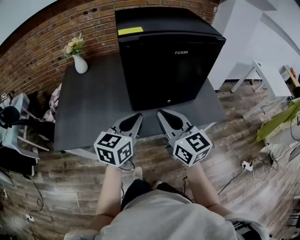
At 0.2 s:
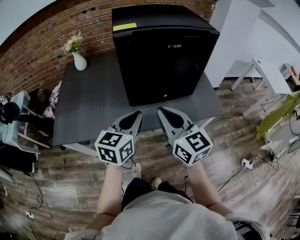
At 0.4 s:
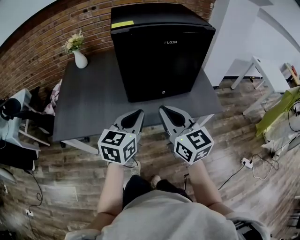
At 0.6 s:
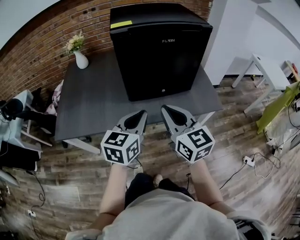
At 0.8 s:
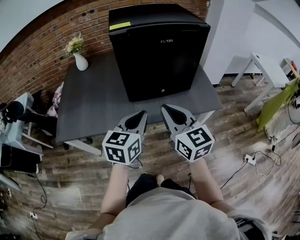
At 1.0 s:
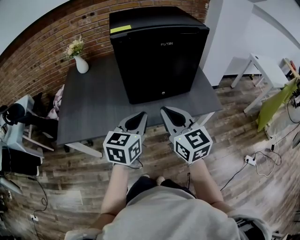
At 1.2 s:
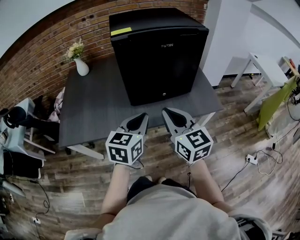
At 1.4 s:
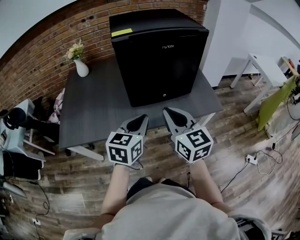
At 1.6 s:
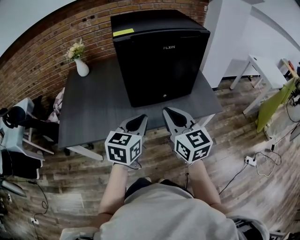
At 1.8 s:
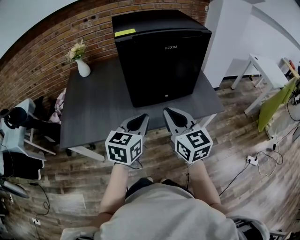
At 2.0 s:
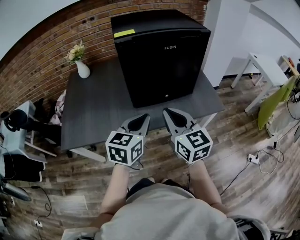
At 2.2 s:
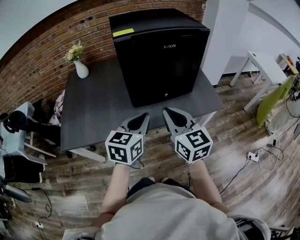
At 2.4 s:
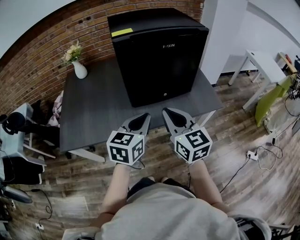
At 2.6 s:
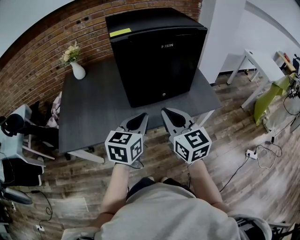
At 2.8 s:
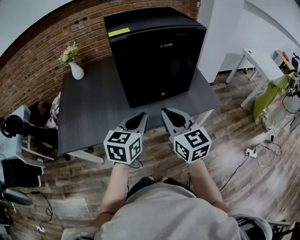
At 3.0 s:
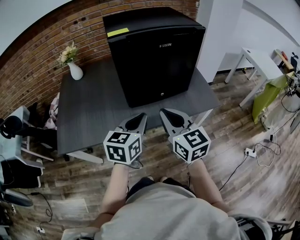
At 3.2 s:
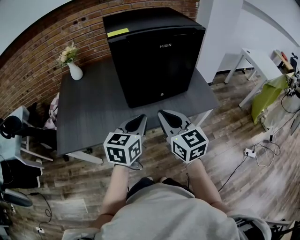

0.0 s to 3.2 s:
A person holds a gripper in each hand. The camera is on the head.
0.0 to 1.6 s: The two grippers go roughly 5 cm backward.
1.6 to 3.2 s: The grippers make only small movements.

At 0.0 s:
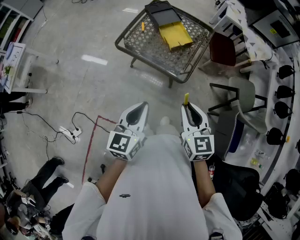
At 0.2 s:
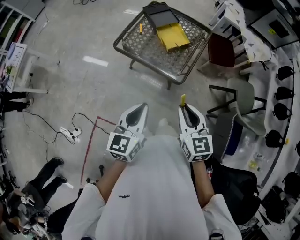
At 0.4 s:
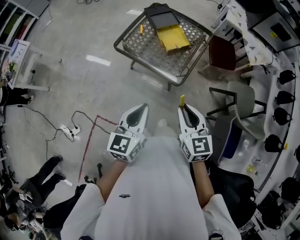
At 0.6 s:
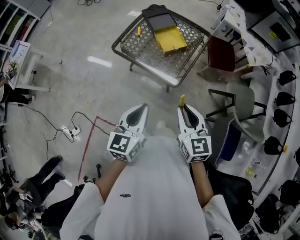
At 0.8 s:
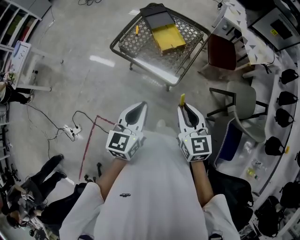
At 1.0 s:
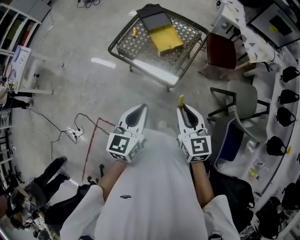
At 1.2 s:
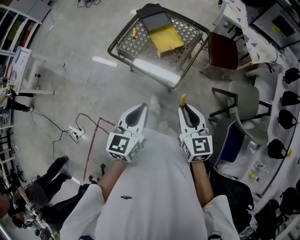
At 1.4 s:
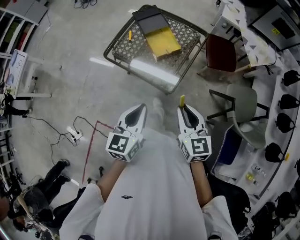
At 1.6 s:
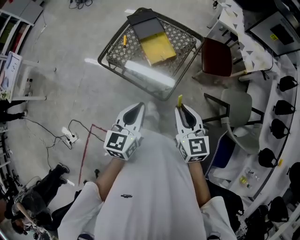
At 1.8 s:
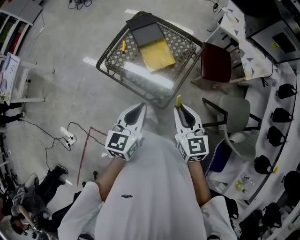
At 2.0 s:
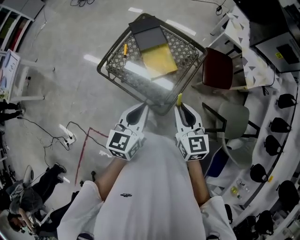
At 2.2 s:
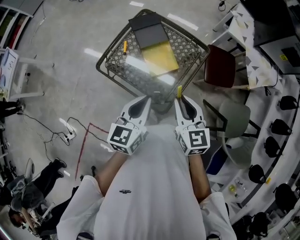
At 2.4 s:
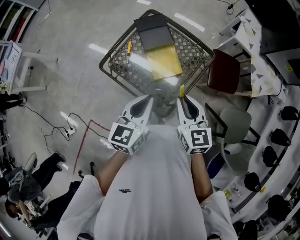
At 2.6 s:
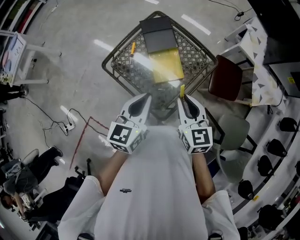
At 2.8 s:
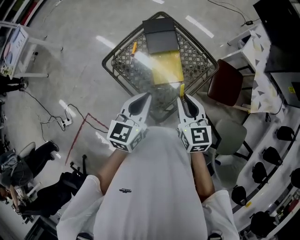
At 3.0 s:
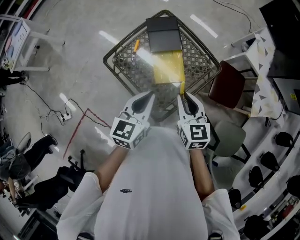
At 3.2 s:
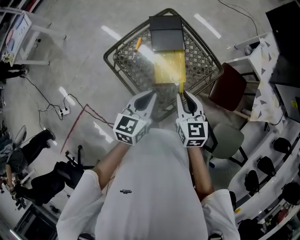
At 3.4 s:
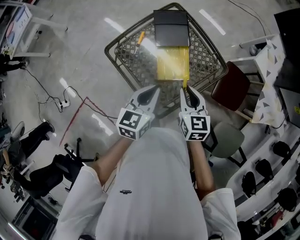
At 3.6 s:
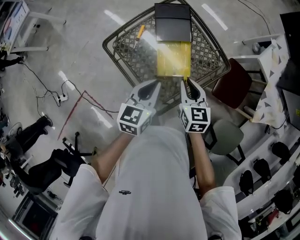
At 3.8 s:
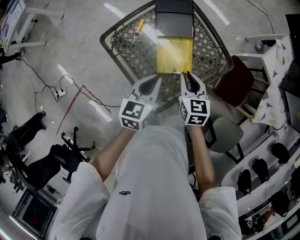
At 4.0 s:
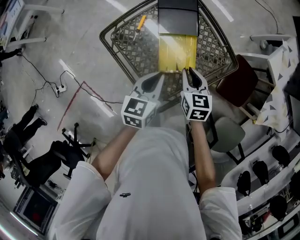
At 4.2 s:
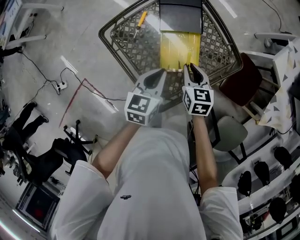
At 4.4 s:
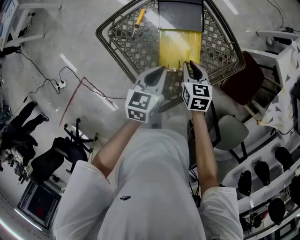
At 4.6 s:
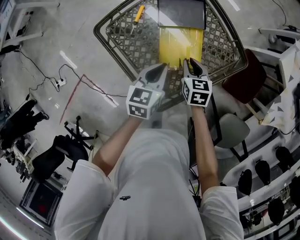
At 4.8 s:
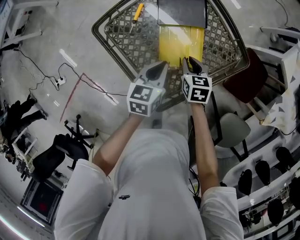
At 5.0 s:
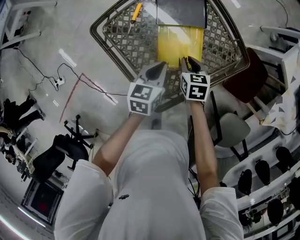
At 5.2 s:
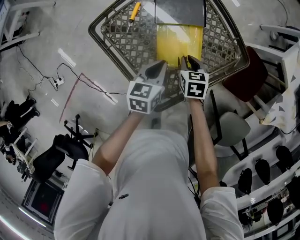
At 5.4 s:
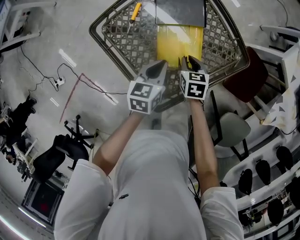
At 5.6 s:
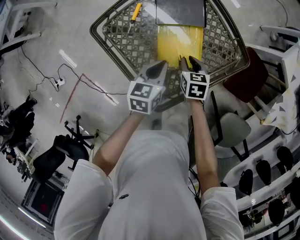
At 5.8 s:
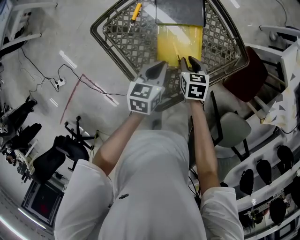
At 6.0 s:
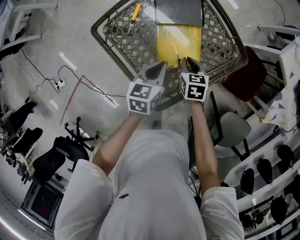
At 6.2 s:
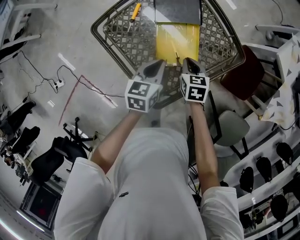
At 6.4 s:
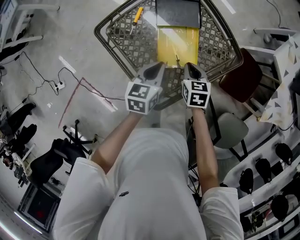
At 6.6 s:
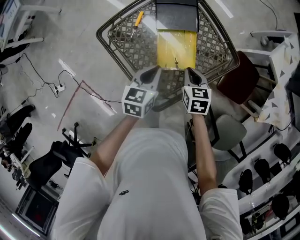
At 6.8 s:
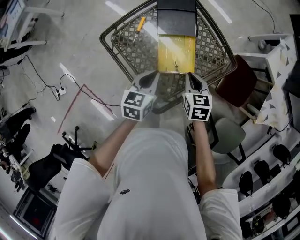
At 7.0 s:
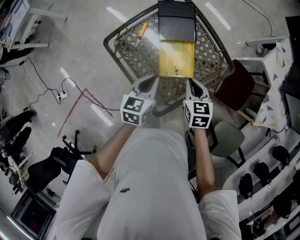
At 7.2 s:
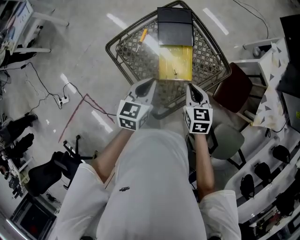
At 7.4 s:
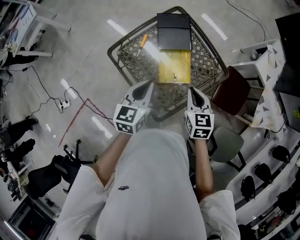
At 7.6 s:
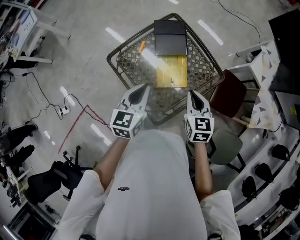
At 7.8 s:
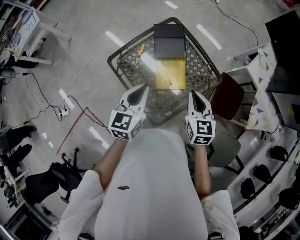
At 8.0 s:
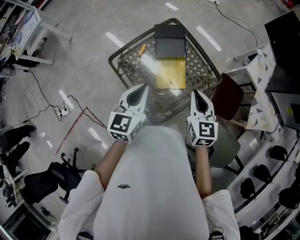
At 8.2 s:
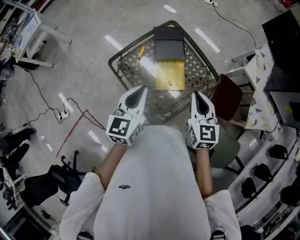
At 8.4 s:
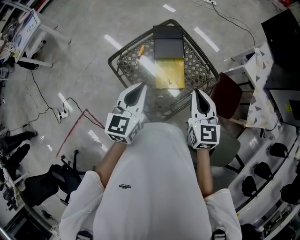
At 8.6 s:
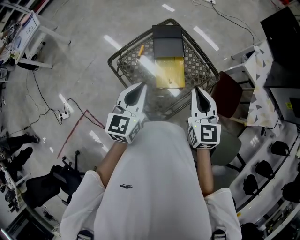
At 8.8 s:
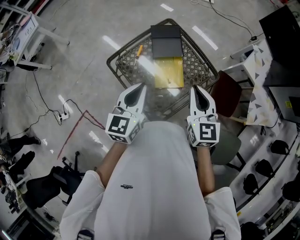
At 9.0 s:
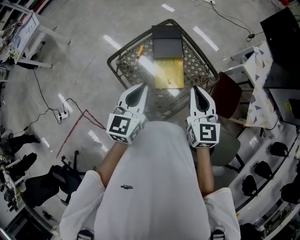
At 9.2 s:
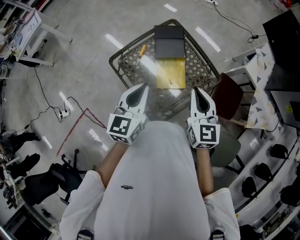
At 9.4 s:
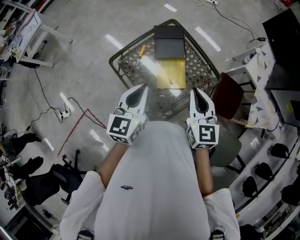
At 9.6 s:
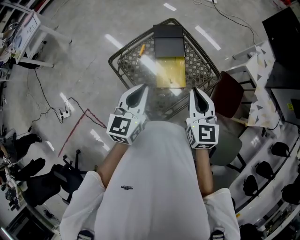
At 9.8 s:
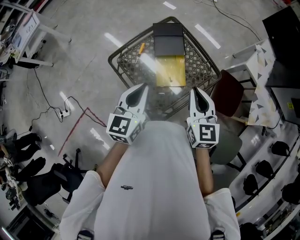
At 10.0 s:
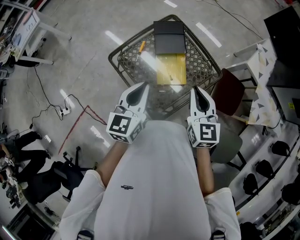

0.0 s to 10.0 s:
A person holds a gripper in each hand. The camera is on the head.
0.0 to 1.4 s: Both grippers move to the right and forward, approximately 15 cm.
1.4 to 2.8 s: The grippers both shift forward by some 30 cm.
2.8 to 4.2 s: The two grippers go about 25 cm downward and forward.
4.2 to 5.8 s: Both grippers move downward, about 10 cm.
5.8 to 7.2 s: Both grippers move upward, about 20 cm.
7.2 to 8.6 s: The grippers both shift upward by some 15 cm. The right gripper turns by about 30 degrees.
8.6 to 10.0 s: The grippers move only a little.

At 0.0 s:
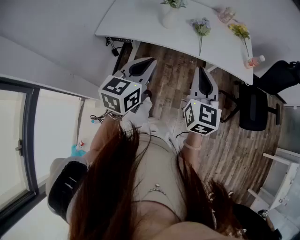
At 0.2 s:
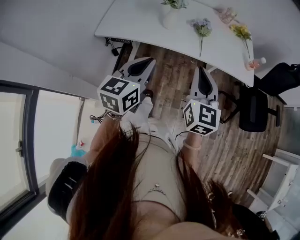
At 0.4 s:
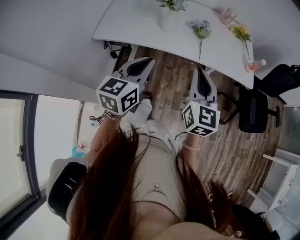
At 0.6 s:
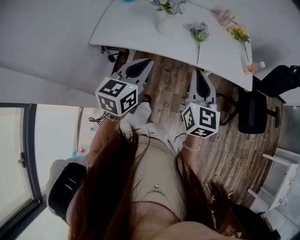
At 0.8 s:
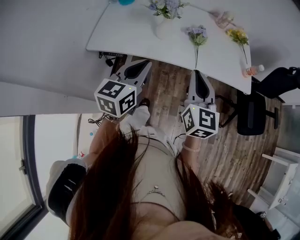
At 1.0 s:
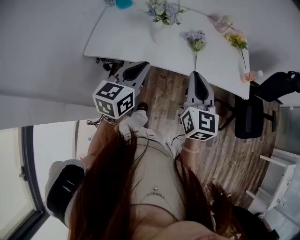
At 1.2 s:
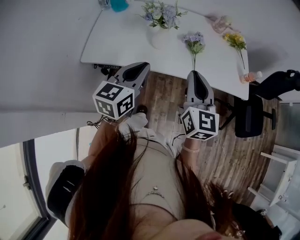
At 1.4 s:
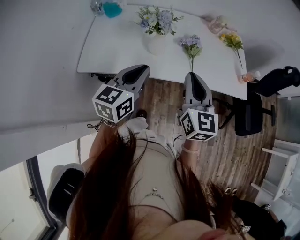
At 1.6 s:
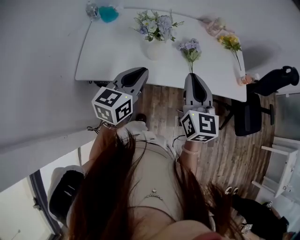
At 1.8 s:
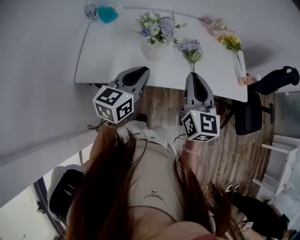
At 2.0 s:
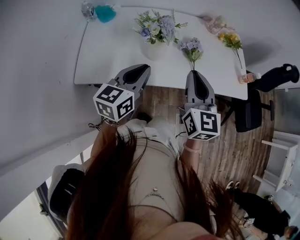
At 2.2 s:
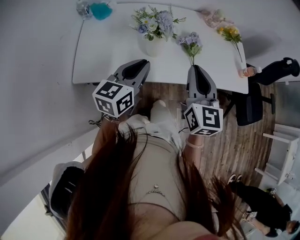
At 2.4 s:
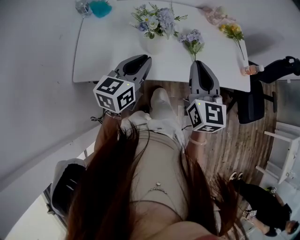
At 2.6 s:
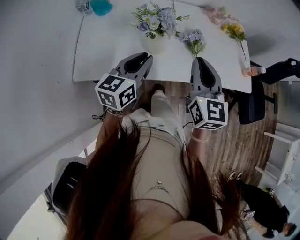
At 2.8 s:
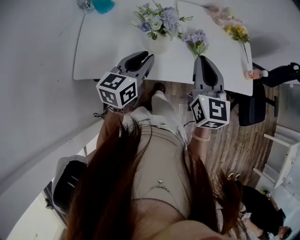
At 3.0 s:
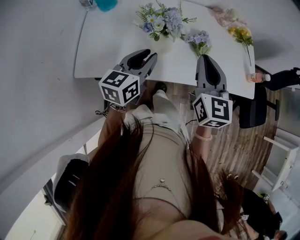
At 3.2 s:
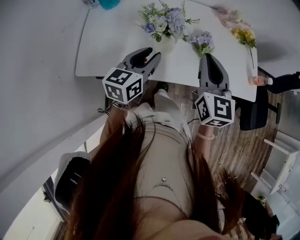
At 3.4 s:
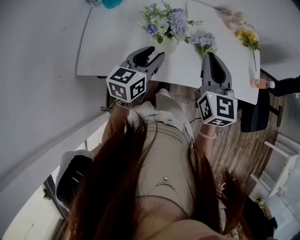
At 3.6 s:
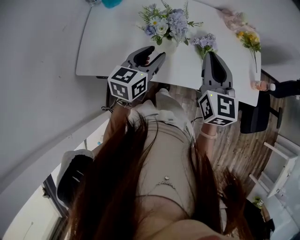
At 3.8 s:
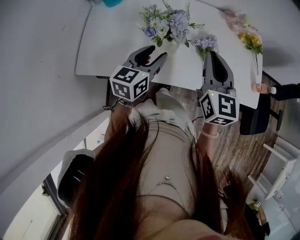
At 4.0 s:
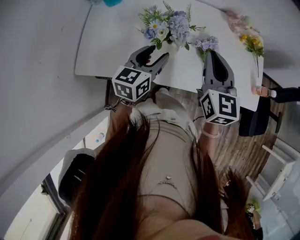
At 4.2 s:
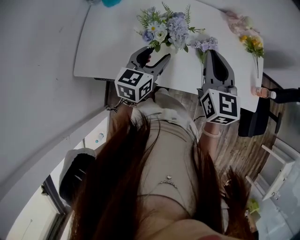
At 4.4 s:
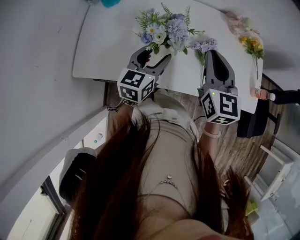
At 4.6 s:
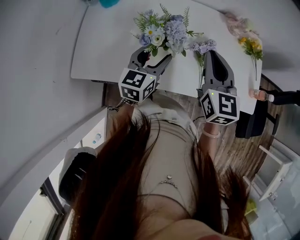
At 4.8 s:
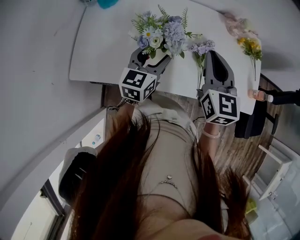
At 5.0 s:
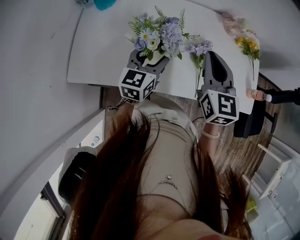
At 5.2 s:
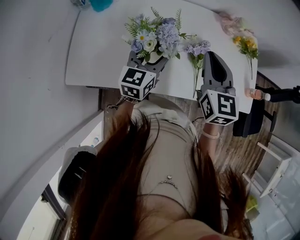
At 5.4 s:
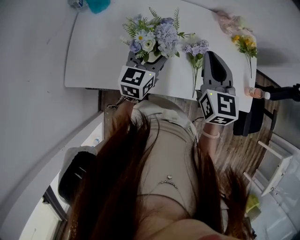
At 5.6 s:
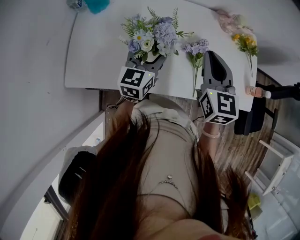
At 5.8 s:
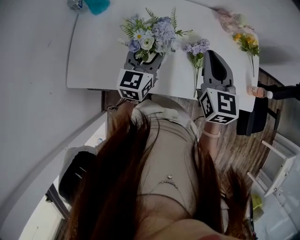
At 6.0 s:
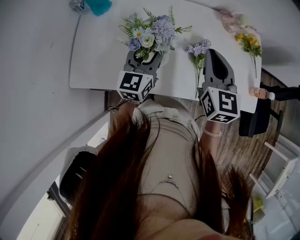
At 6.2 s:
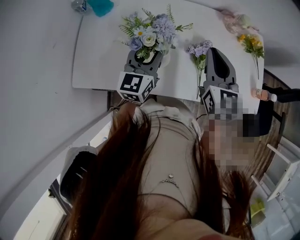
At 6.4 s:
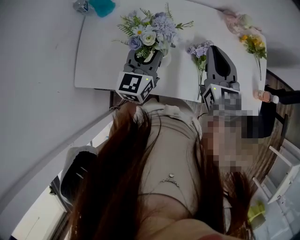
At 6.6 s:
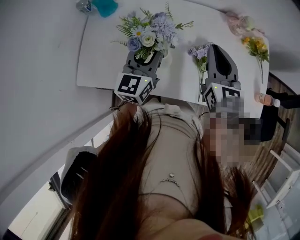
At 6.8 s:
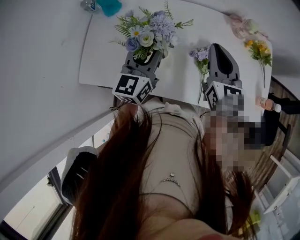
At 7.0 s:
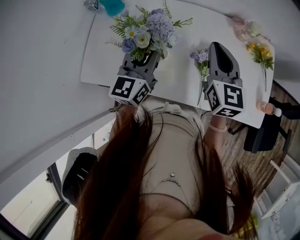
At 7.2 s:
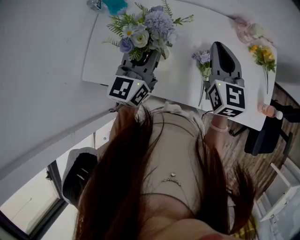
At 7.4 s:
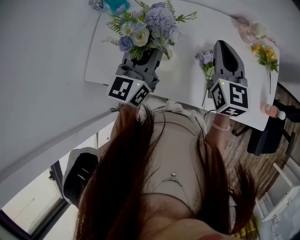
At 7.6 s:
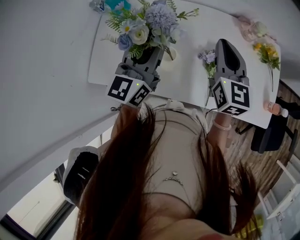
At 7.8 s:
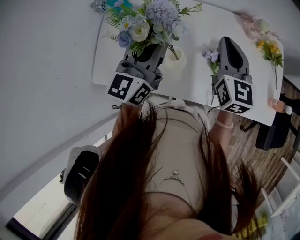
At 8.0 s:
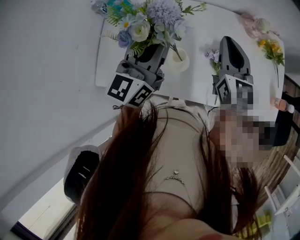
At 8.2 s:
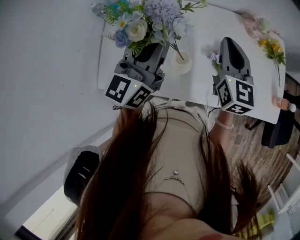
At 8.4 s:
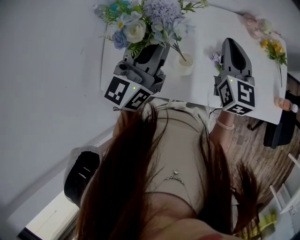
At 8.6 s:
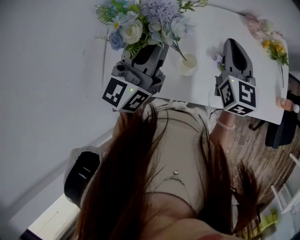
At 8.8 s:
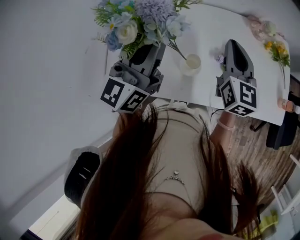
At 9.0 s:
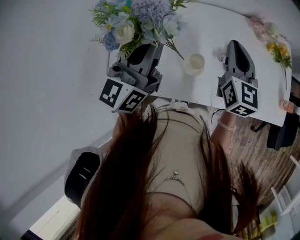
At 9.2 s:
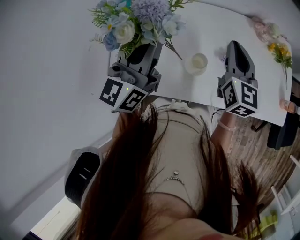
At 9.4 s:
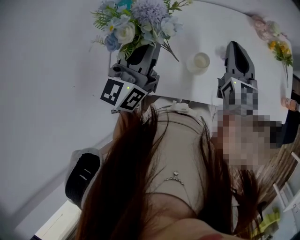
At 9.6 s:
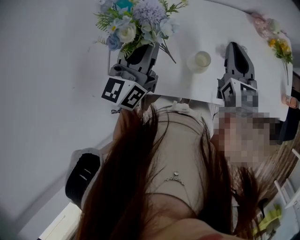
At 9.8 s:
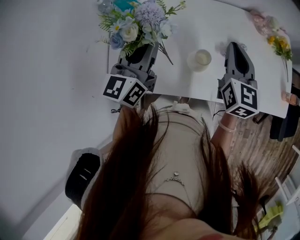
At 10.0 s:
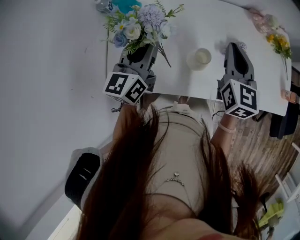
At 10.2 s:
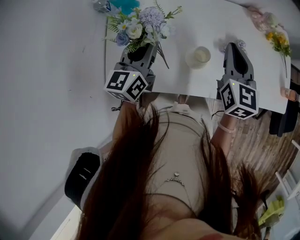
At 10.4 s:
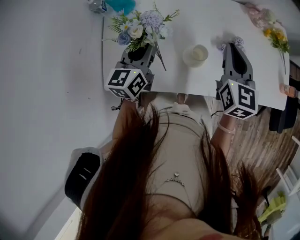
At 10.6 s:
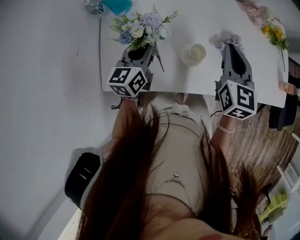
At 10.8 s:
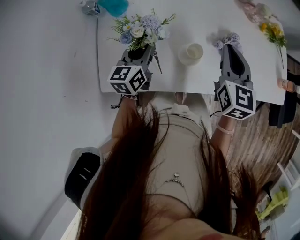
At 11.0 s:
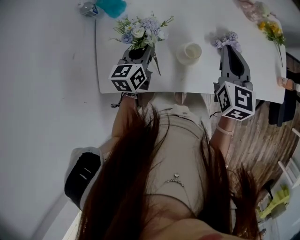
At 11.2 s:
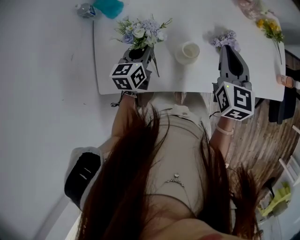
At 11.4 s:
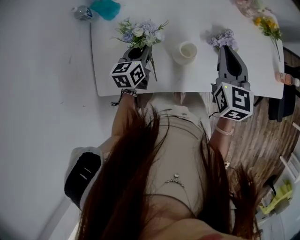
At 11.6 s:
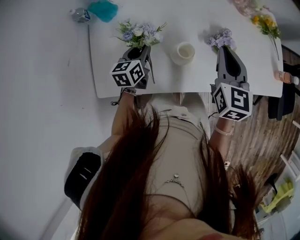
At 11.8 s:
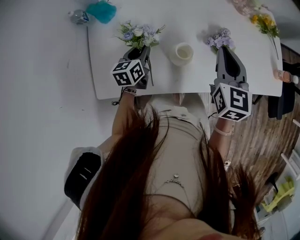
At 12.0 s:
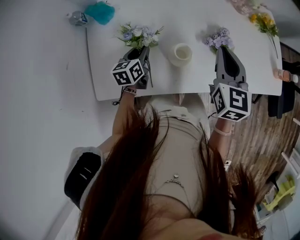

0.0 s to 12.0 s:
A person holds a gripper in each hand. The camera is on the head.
0.0 to 1.6 s: The grippers both shift forward by some 20 cm.
1.6 to 3.0 s: Both grippers travel together forward, approximately 10 cm.
3.0 to 4.4 s: The right gripper shifts some 10 cm forward, while the left gripper moves forward and downward, roughly 10 cm, and opens up.
4.4 to 6.0 s: The left gripper ends up roughly 5 cm from where it was.
6.0 to 7.6 s: The right gripper heads forward, covering approximately 5 cm; the left gripper shifts about 10 cm upward.
7.6 to 9.0 s: The right gripper heads to the left, covering some 5 cm, while the left gripper heads to the left and upward, covering roughly 10 cm.
9.0 to 10.4 s: The left gripper shifts some 15 cm downward, and changes its angle by some 20 degrees.
10.4 to 12.0 s: The left gripper moves downward, some 15 cm, and swivels roughly 20 degrees.
